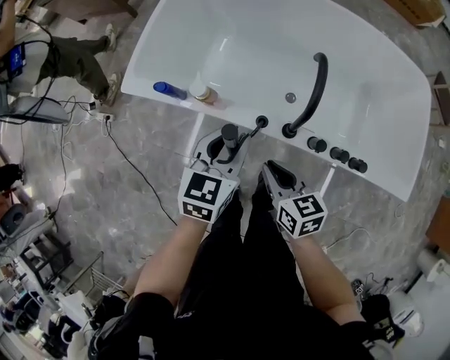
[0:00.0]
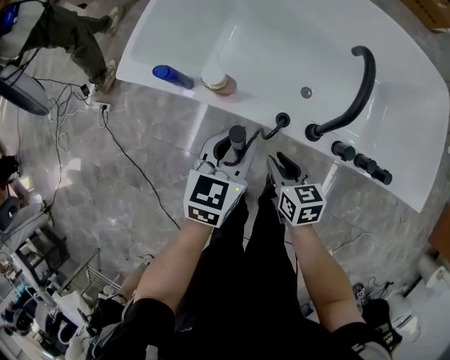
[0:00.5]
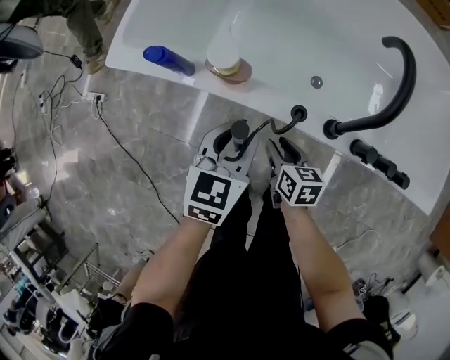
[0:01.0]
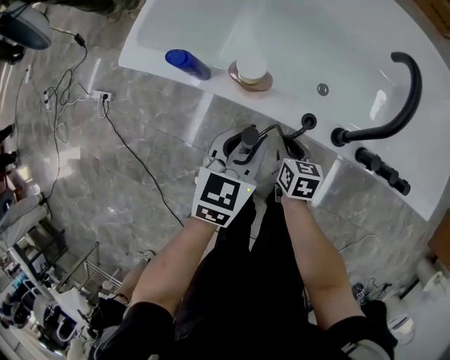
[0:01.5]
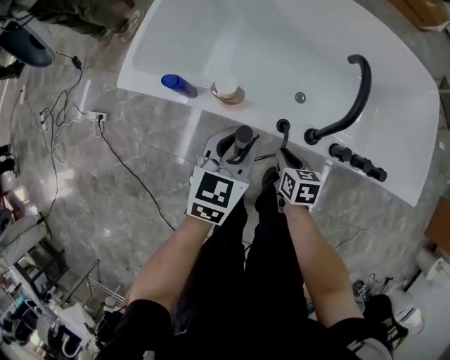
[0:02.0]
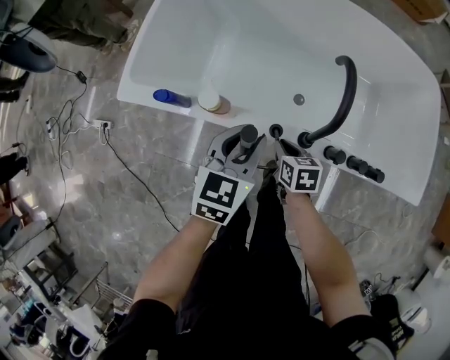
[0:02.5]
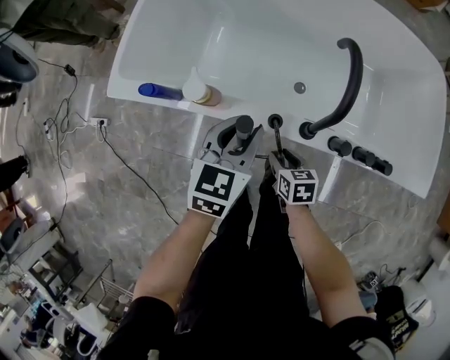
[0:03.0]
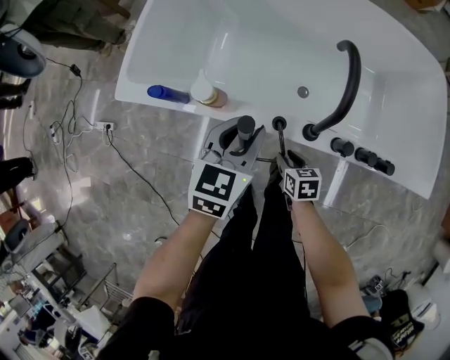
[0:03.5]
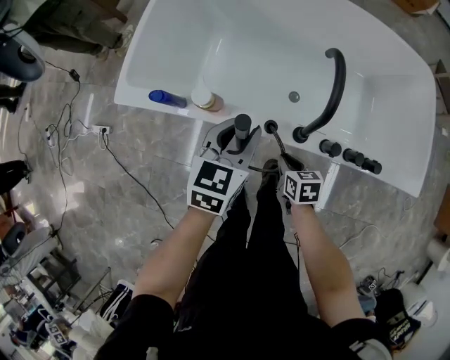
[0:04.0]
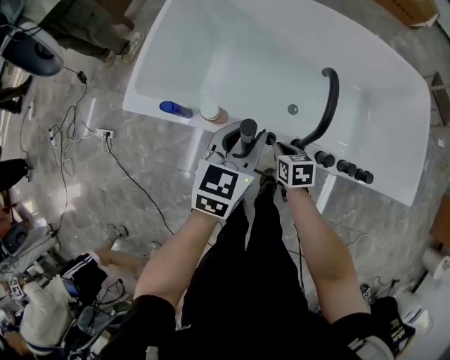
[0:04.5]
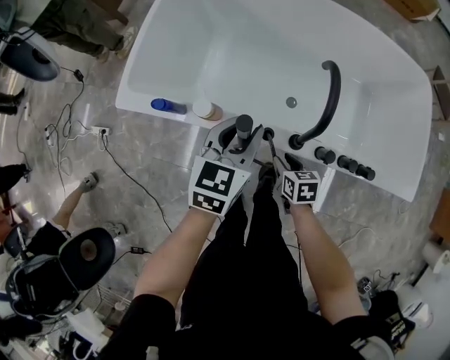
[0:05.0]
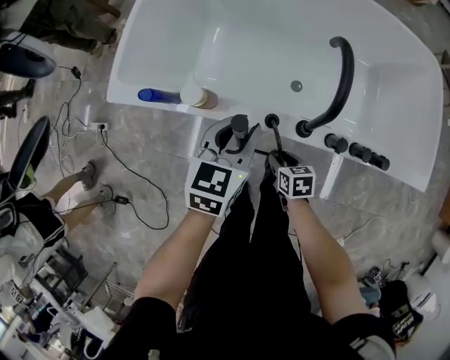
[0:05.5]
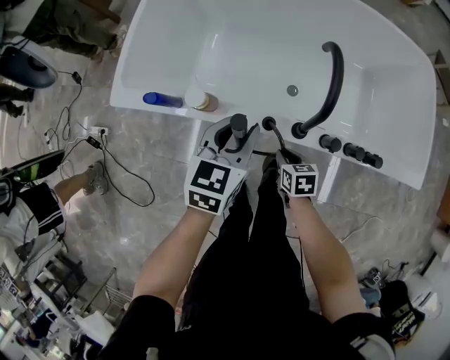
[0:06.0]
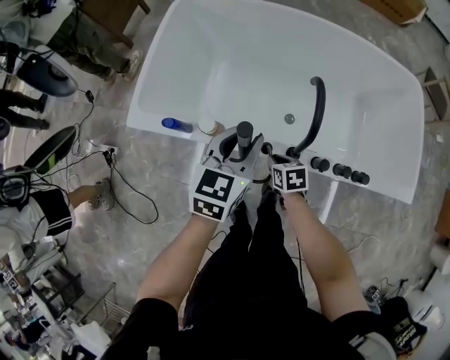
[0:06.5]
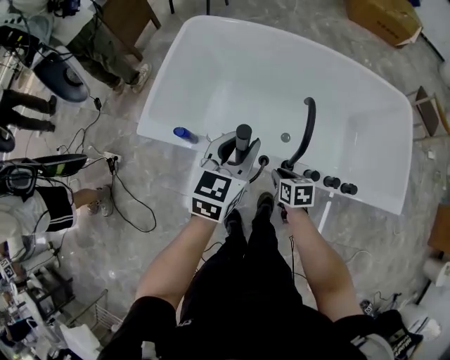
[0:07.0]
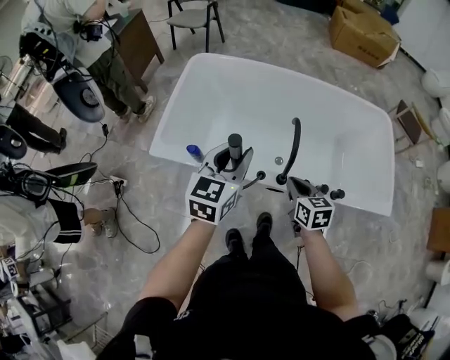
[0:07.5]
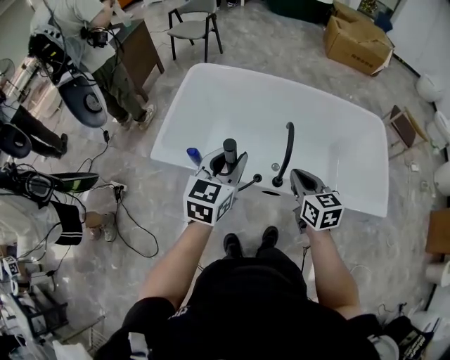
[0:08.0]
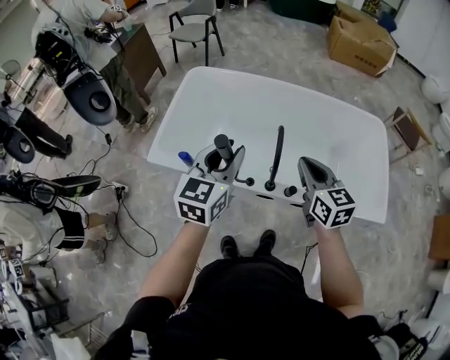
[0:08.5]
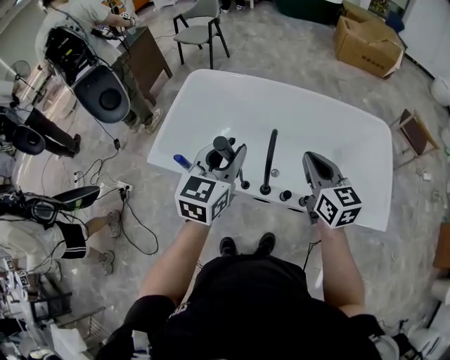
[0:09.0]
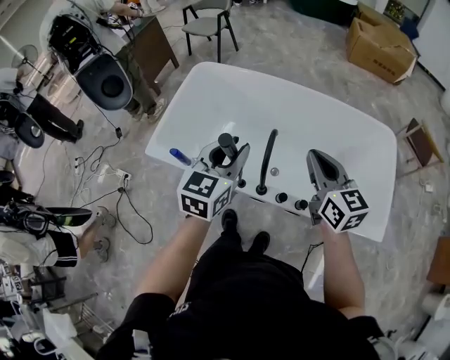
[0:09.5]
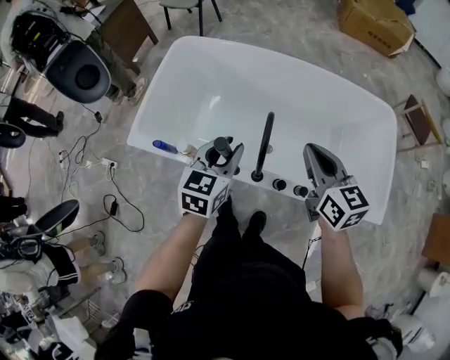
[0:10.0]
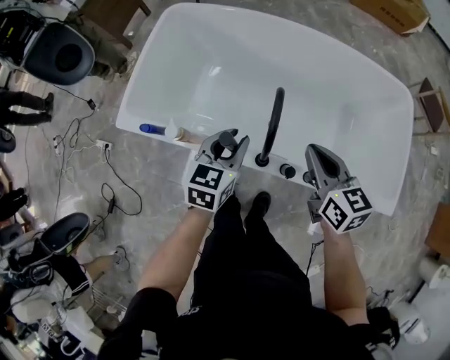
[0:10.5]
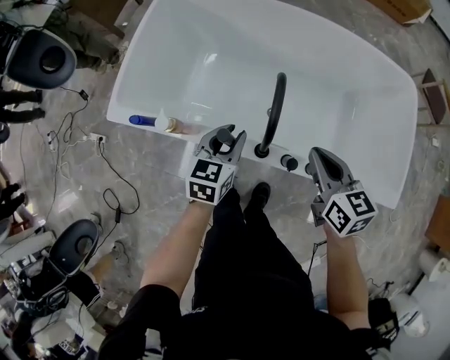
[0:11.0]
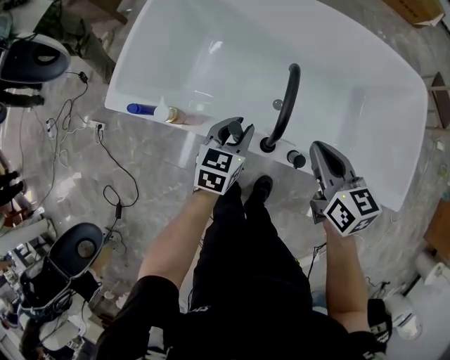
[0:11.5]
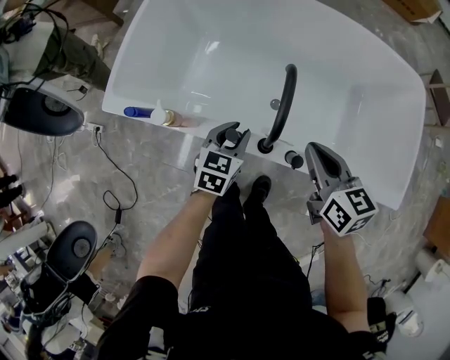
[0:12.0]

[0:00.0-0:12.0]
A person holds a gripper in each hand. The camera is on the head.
0:00.0 to 0:02.0: The left gripper travels downward and to the left by about 10 cm. The right gripper goes about 20 cm downward, turns by about 20 degrees, and opens, then closes once more.
0:02.0 to 0:04.0: The right gripper opens and closes again, while the left gripper ends up approximately 5 cm from where it was.
0:04.0 to 0:06.0: The left gripper goes upward and returns, about 5 cm each way, while the right gripper travels downward and back again, approximately 5 cm each way, and opens, then closes again.
0:06.0 to 0:08.0: Both grippers move upward, some 35 cm. The right gripper angles its fingers upward, by roughly 30 degrees.
0:08.0 to 0:10.0: The right gripper is displaced forward and to the right by approximately 15 cm; the left gripper travels to the right, forward and downward by about 20 cm.
0:10.0 to 0:12.0: The two grippers go some 25 cm downward.

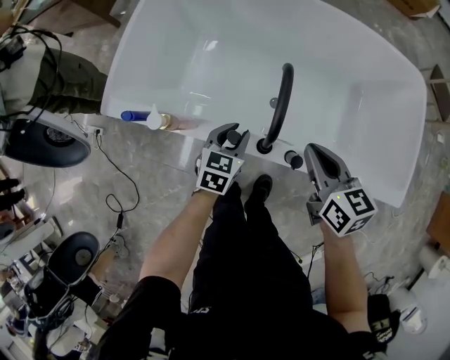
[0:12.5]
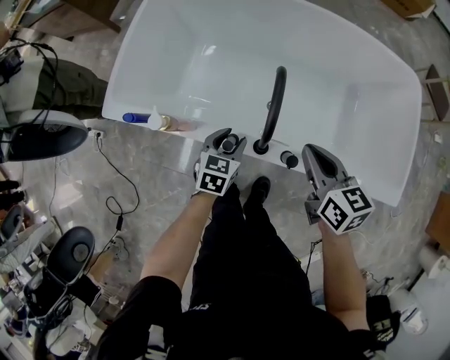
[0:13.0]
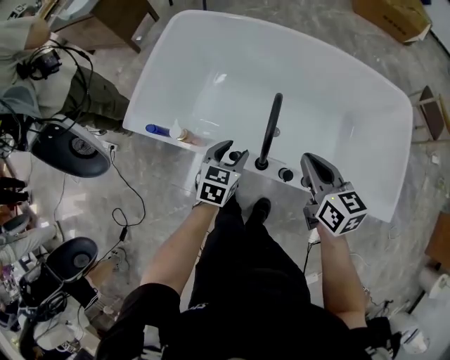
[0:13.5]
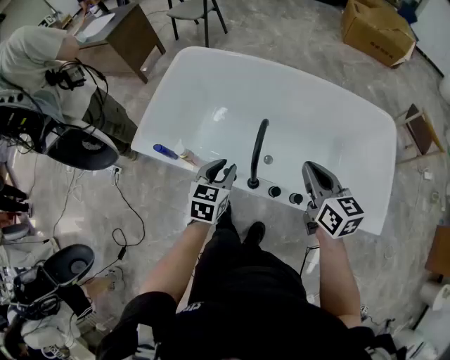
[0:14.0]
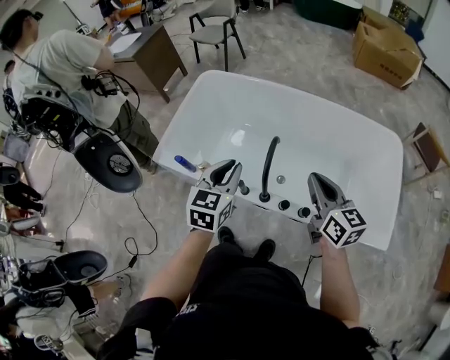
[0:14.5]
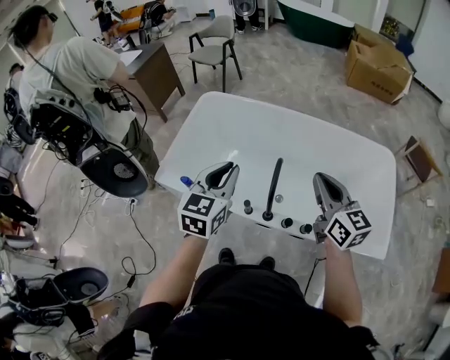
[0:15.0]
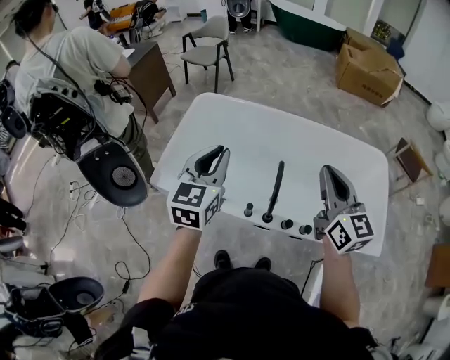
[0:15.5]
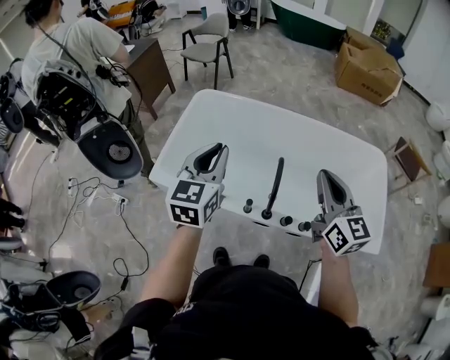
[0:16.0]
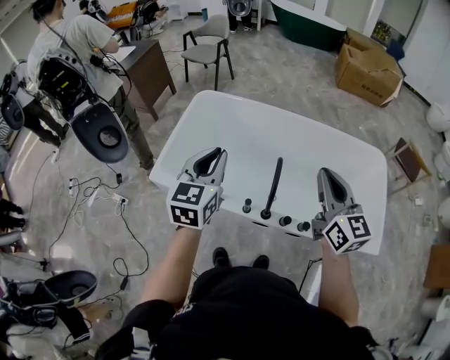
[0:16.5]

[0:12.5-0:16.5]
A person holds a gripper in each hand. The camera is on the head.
0:12.5 to 0:14.5: The right gripper shifts roughly 20 cm upward. The left gripper goes about 35 cm upward, and swivels about 20 degrees.
0:14.5 to 0:16.5: The left gripper moves to the left and upward, roughly 15 cm; the right gripper moves upward and to the left, approximately 15 cm, and changes its angle by approximately 20 degrees.

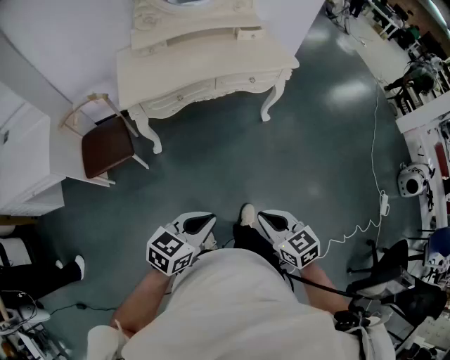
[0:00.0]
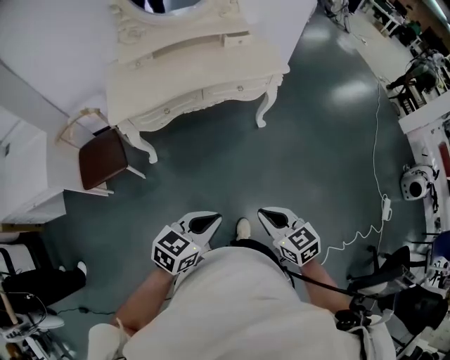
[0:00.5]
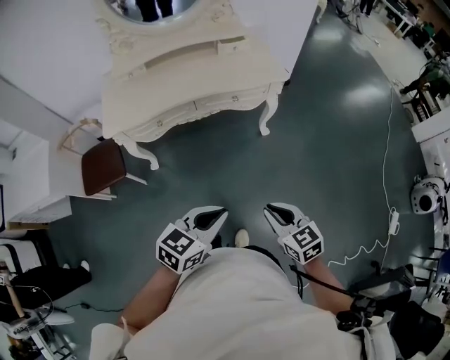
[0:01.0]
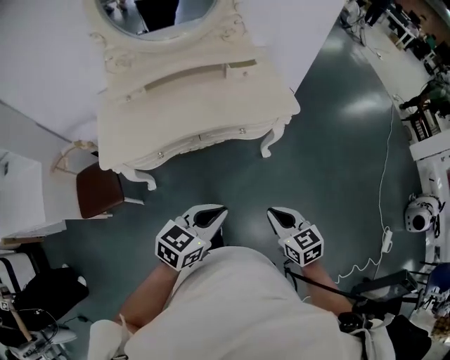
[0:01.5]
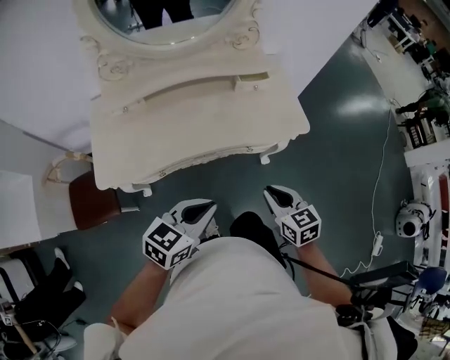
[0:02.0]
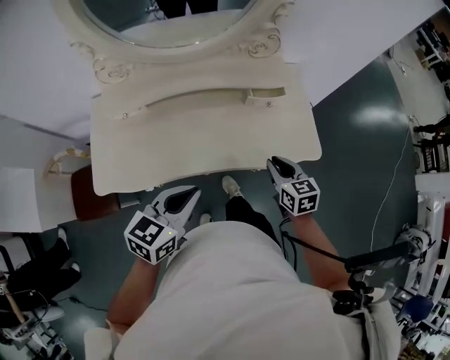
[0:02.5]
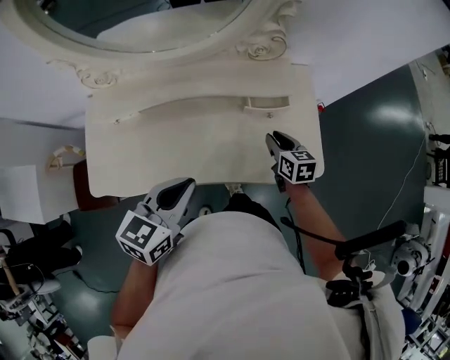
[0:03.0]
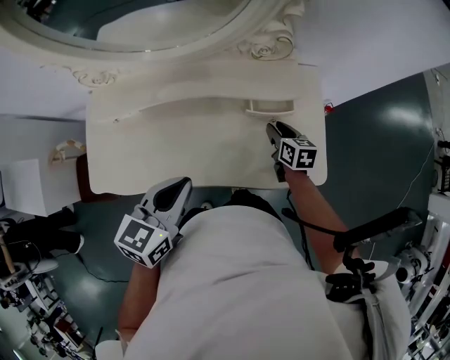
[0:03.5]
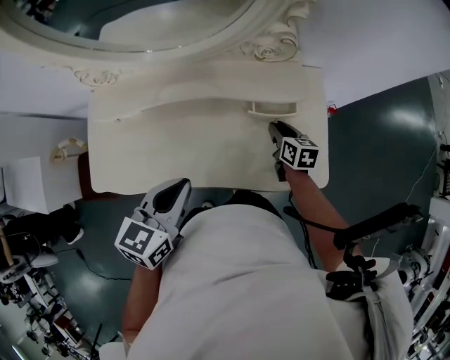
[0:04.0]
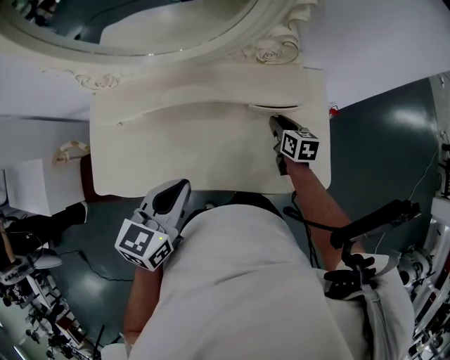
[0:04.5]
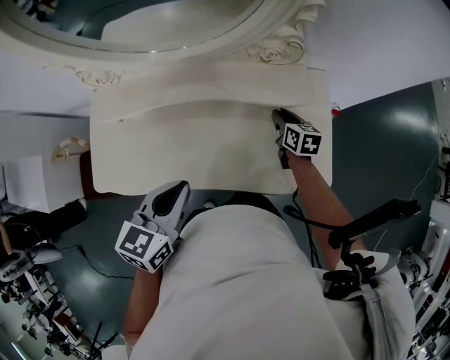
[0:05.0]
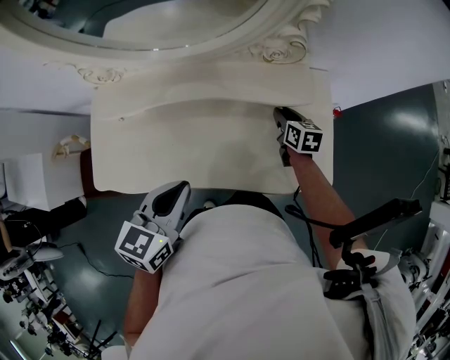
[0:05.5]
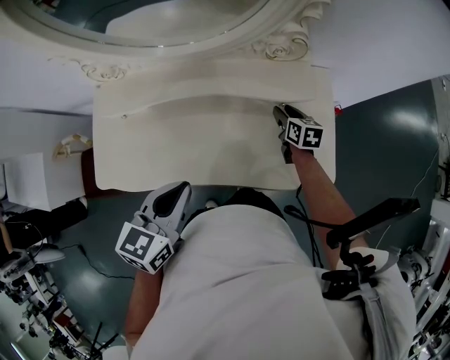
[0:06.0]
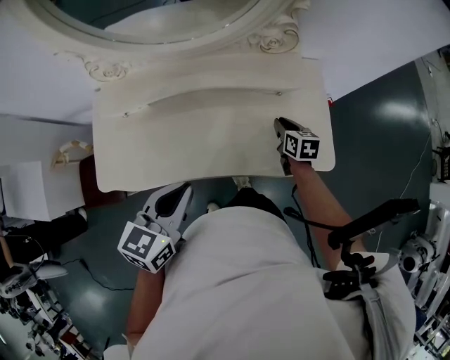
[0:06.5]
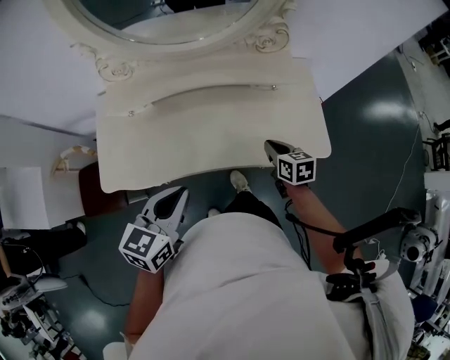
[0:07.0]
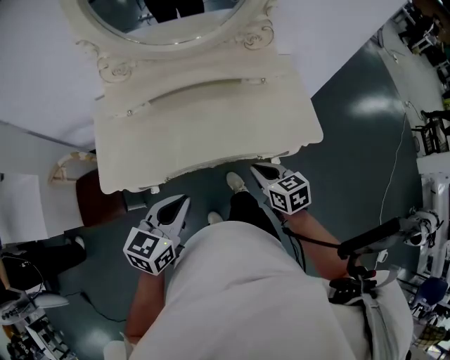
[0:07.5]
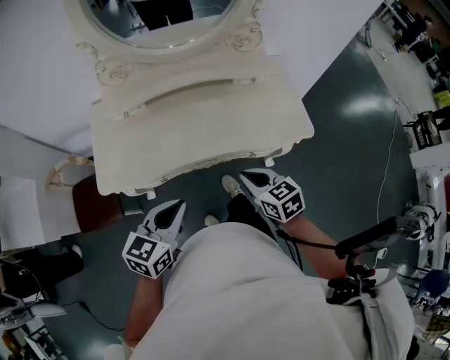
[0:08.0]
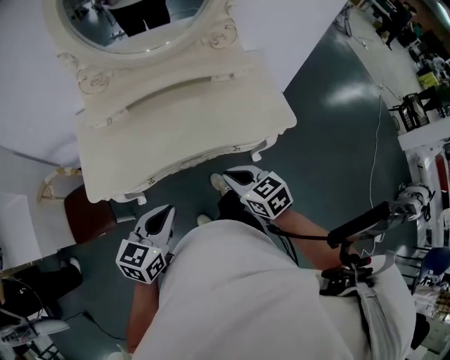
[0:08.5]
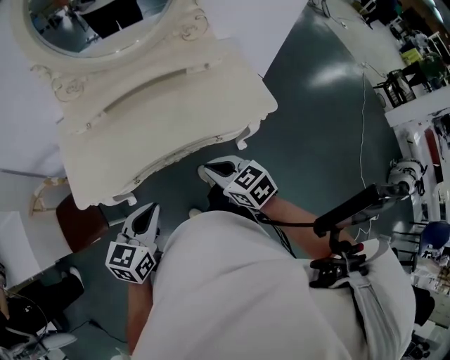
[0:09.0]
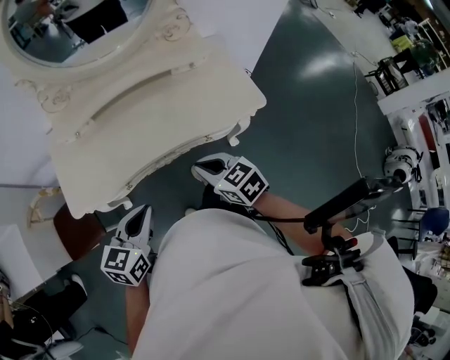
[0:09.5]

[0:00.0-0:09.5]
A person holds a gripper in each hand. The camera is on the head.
0:00.0 to 0:02.0: The pair of grippers is taken forward, some 50 cm.
0:02.0 to 0:04.0: The right gripper shifts some 50 cm forward; the left gripper is displaced forward by some 30 cm, and turns by about 30 degrees.
0:04.0 to 0:05.5: The right gripper travels forward by about 5 cm.
0:05.5 to 0:07.5: The right gripper travels backward by roughly 40 cm, and closes, while the left gripper heads backward and to the left, covering roughly 25 cm.
0:07.5 to 0:09.5: The right gripper shifts some 5 cm backward.

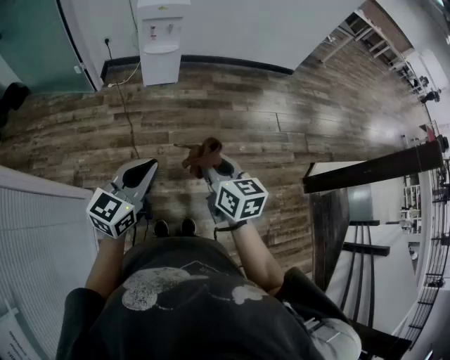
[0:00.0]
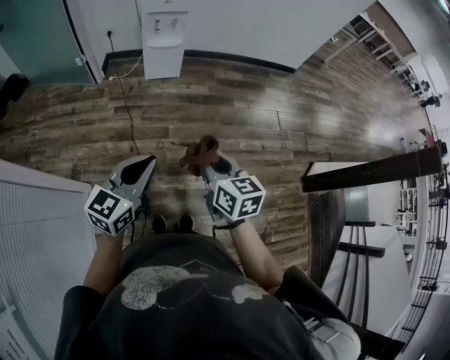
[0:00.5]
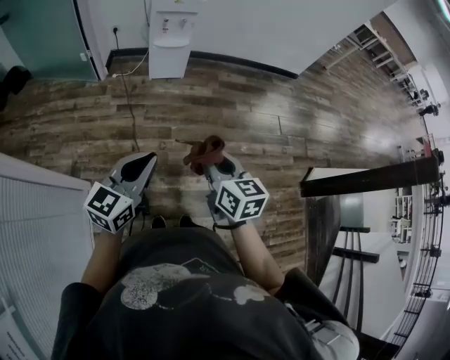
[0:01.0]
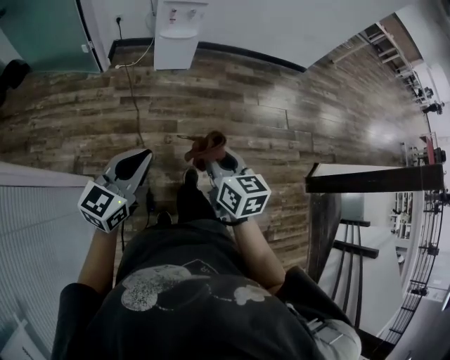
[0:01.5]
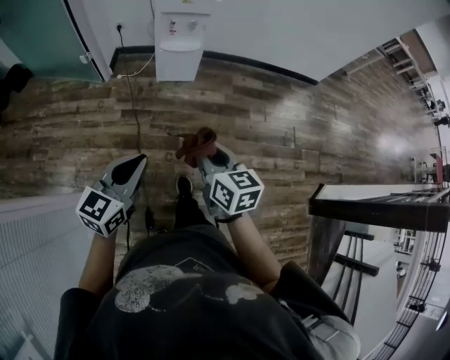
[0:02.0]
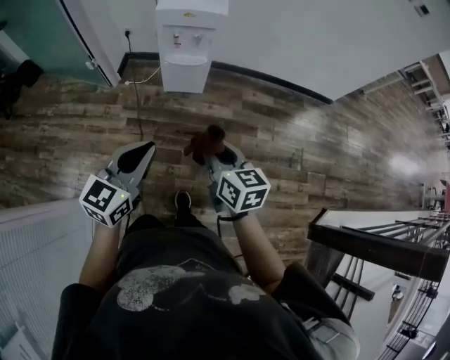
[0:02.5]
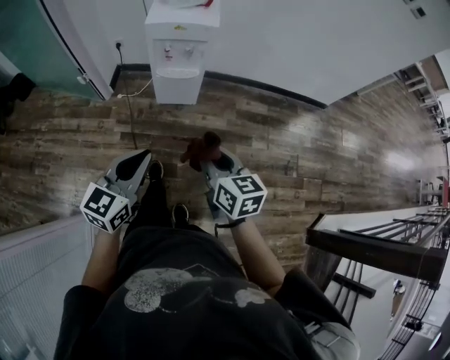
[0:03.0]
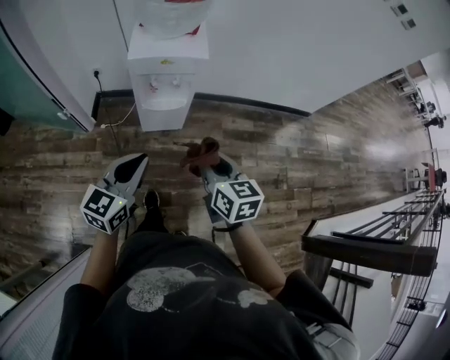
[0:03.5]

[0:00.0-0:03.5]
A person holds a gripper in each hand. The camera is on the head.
0:00.0 to 0:02.0: Both grippers move forward and to the left, roughly 20 cm.
0:02.0 to 0:03.5: Both grippers move forward, about 30 cm.
